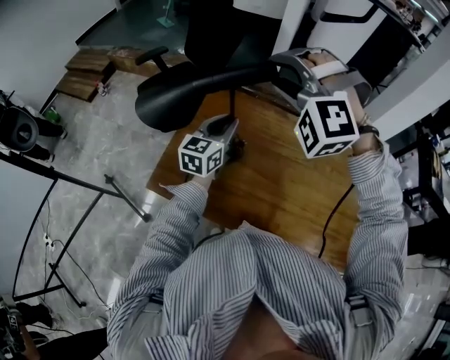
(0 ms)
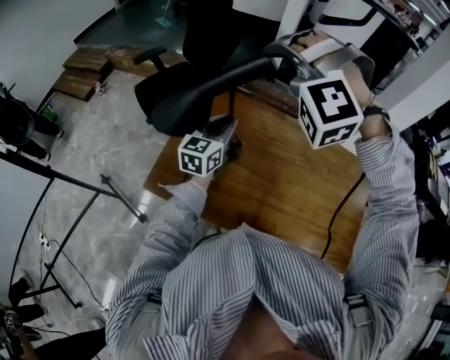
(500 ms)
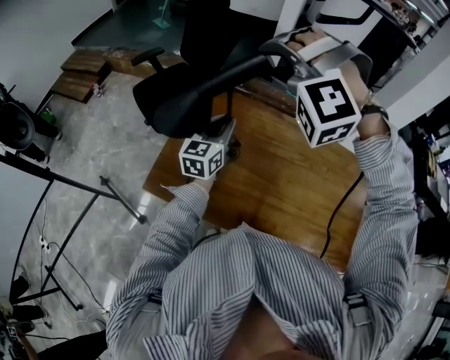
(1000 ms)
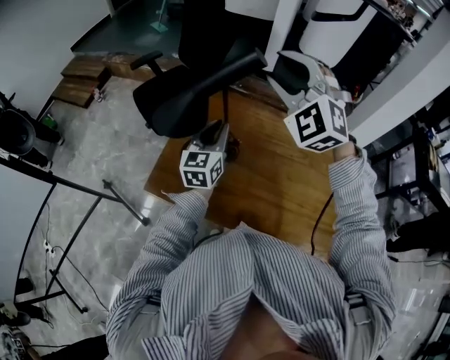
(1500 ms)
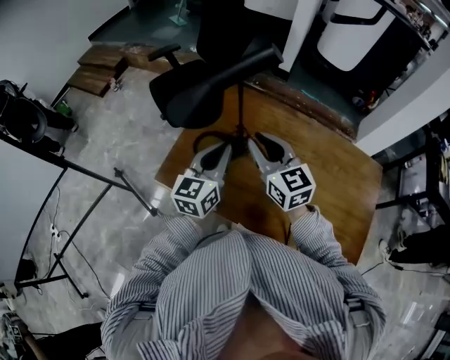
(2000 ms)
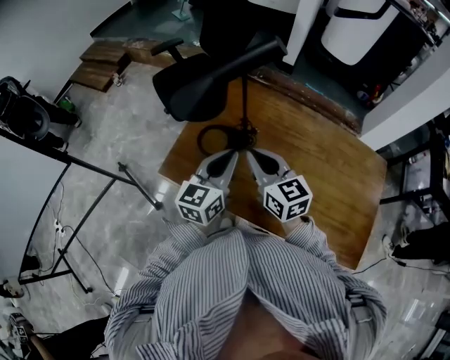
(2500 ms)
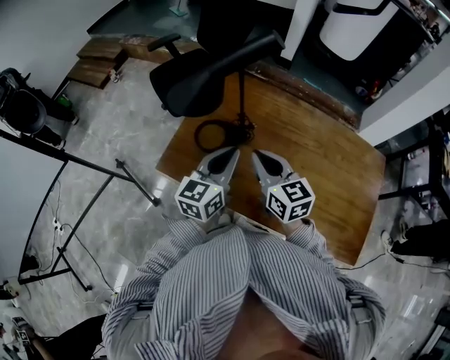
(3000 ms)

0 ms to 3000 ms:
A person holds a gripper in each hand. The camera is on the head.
0 ms to 1500 ms: The right gripper swivels approximately 40 degrees.
1500 ms to 3000 ms: The left gripper goes about 15 cm backward. Meanwhile the right gripper moves downward and backward, some 25 cm, rotates around the line of its fingers by approximately 80 degrees, clockwise from behind, and closes.

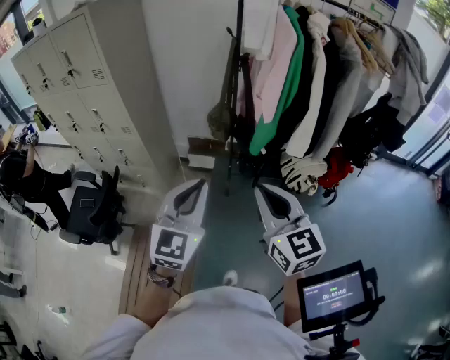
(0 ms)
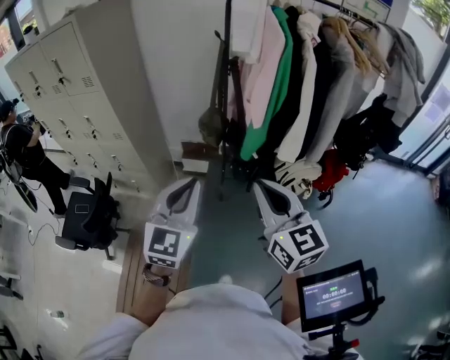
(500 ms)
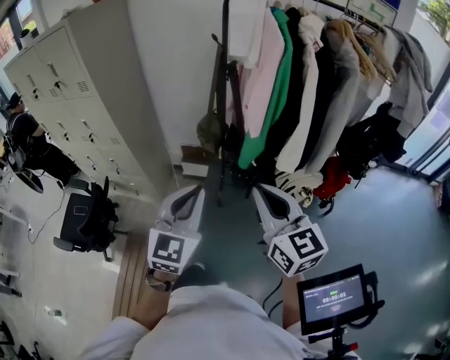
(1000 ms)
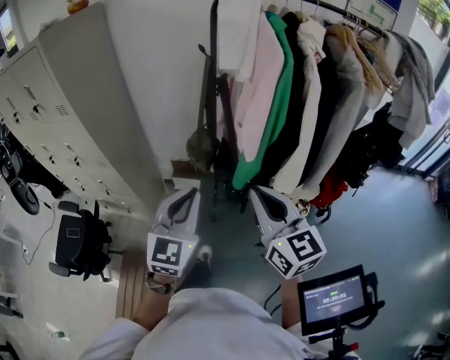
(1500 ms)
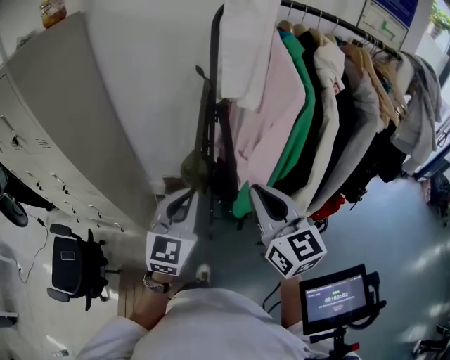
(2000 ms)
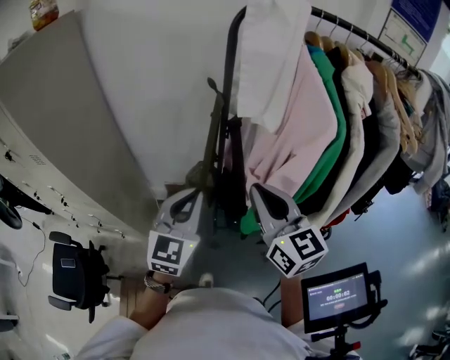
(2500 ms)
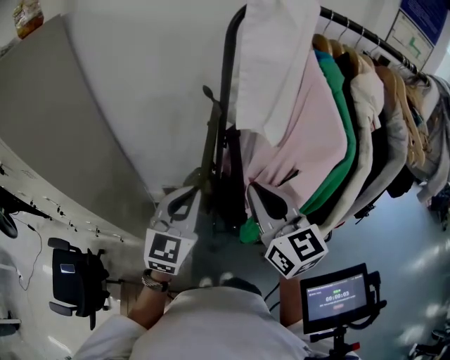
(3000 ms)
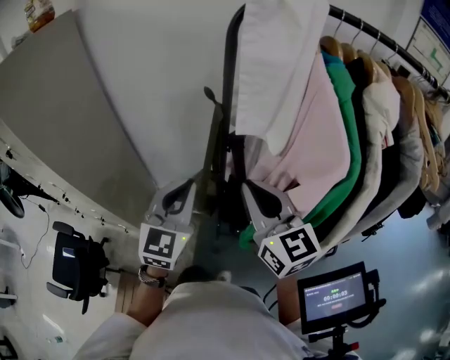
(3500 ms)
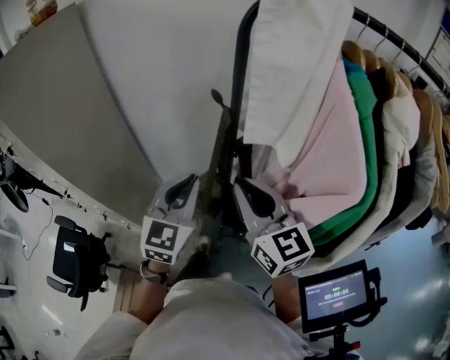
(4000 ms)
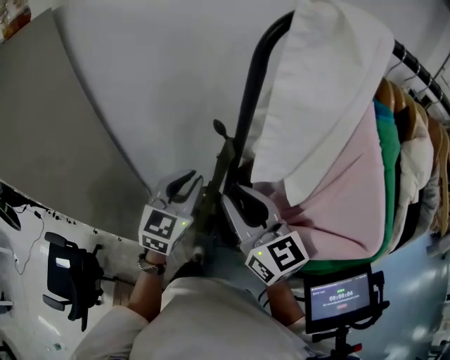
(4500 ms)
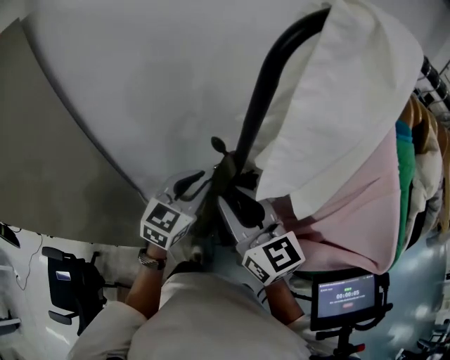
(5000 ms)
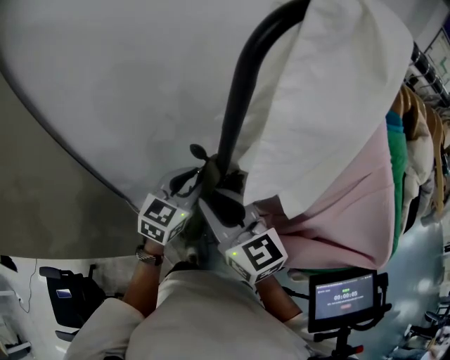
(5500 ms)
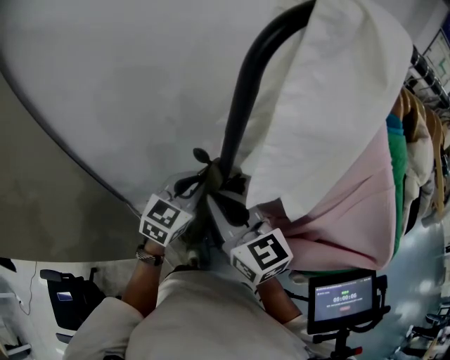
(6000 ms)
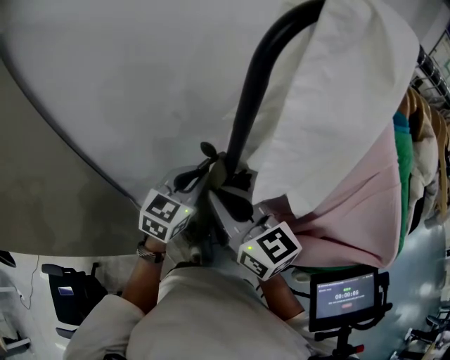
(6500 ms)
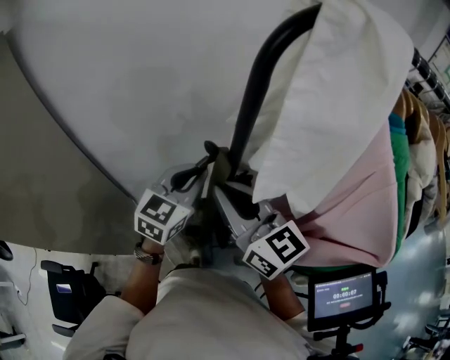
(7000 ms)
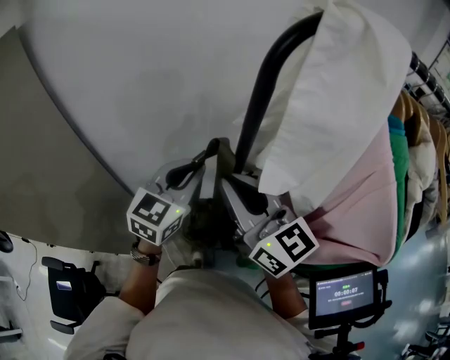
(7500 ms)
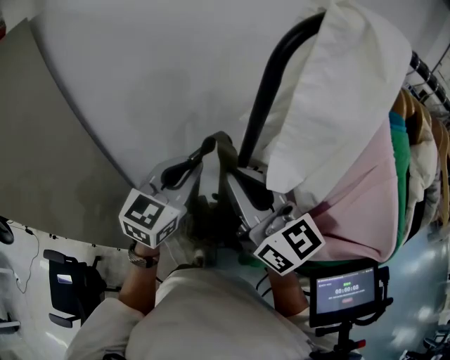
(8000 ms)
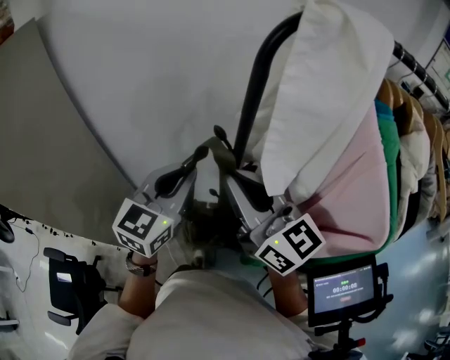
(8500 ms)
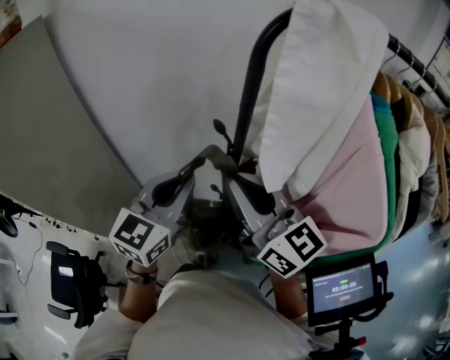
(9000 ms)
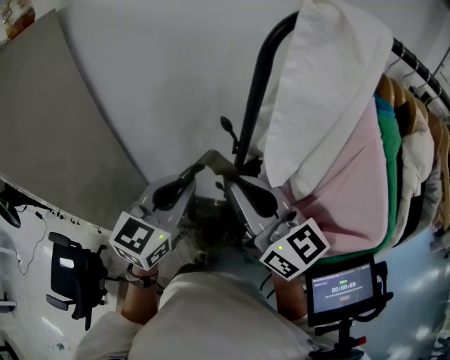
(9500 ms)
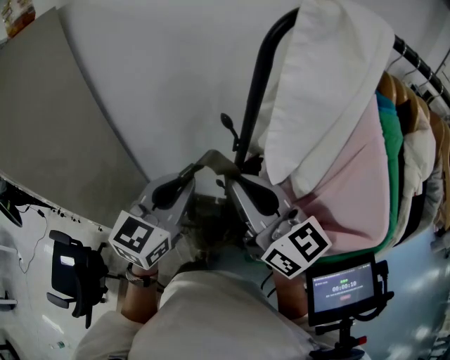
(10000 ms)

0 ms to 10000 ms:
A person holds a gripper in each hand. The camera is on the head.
0 ms to 2000 ms: The grippers both shift forward by roughly 30 cm.
2000 ms to 4000 ms: The grippers both shift forward by about 20 cm.
4000 ms to 6000 ms: The right gripper heads forward, covering some 5 cm. The left gripper moves forward, to the right and downward, approximately 15 cm, and swivels approximately 30 degrees.
6000 ms to 8000 ms: The left gripper travels upward and to the left by roughly 15 cm; the right gripper goes approximately 10 cm upward.
8000 ms to 10000 ms: The right gripper travels backward by about 5 cm. Meanwhile the left gripper is displaced backward by approximately 10 cm.

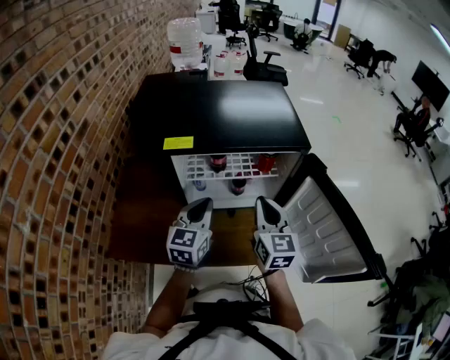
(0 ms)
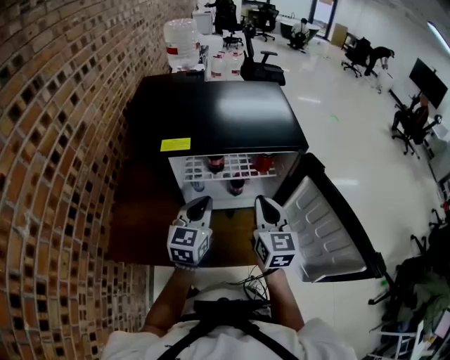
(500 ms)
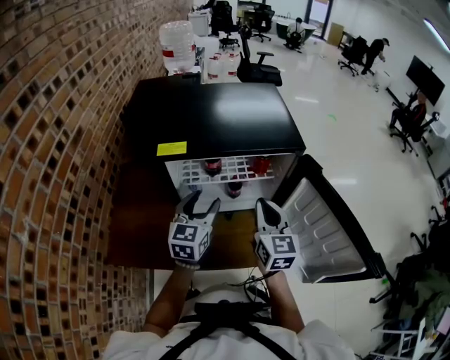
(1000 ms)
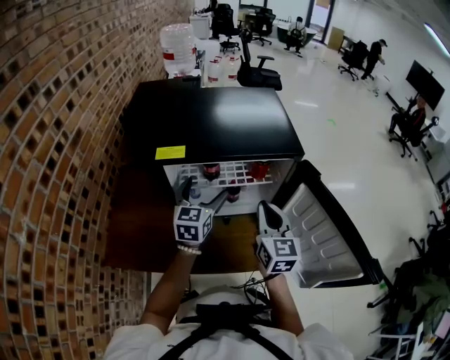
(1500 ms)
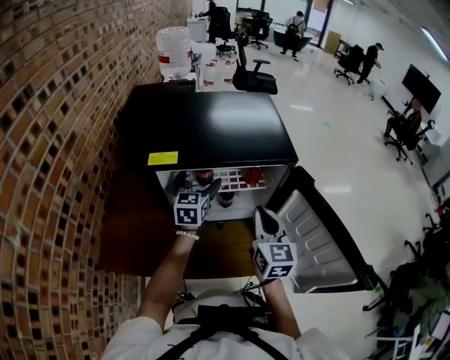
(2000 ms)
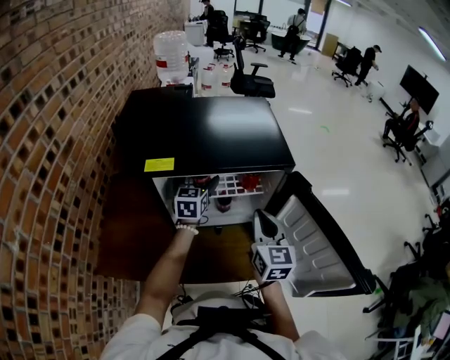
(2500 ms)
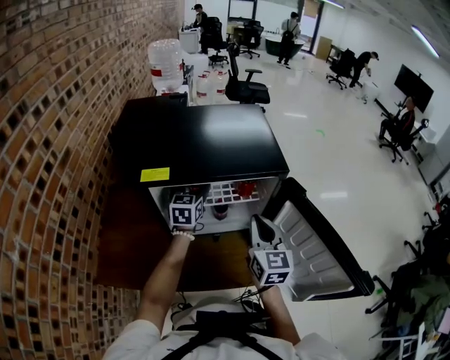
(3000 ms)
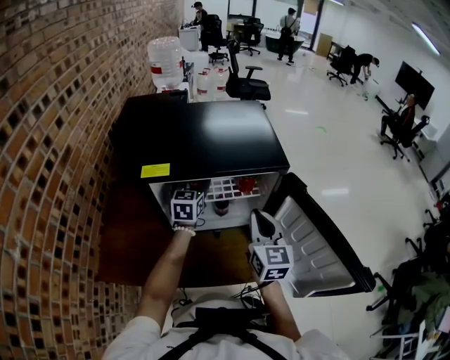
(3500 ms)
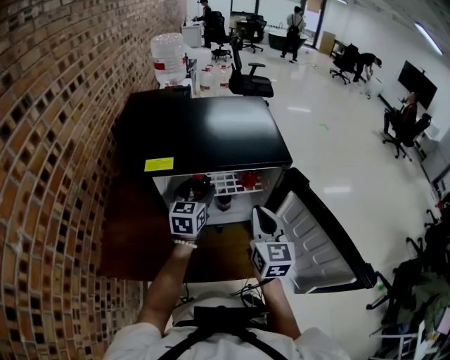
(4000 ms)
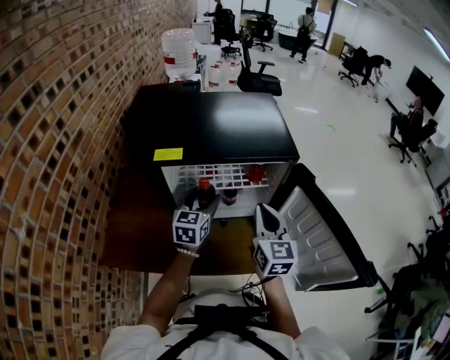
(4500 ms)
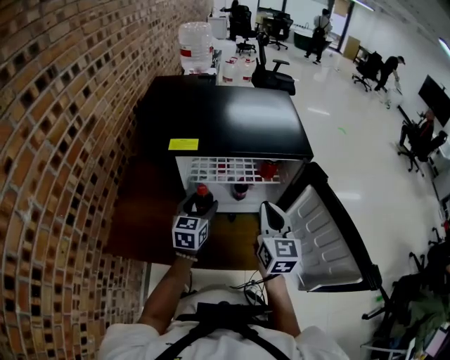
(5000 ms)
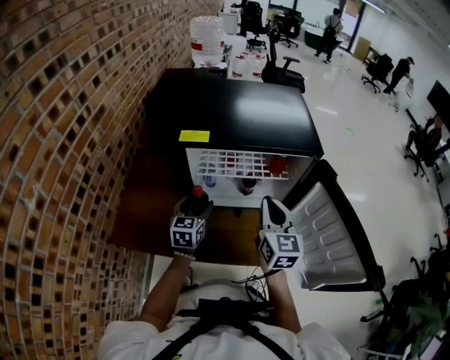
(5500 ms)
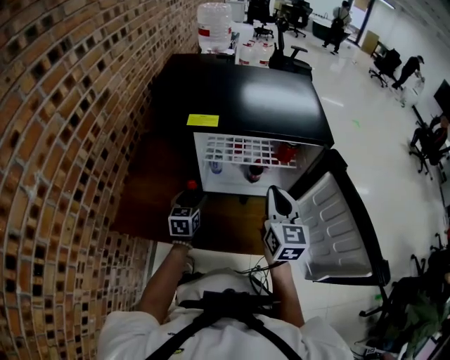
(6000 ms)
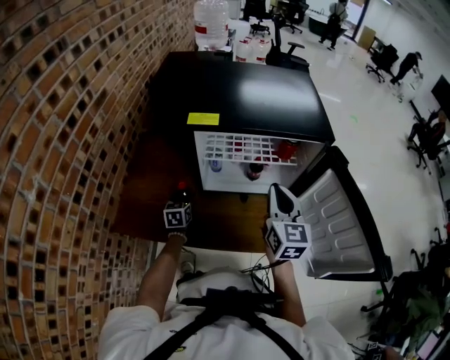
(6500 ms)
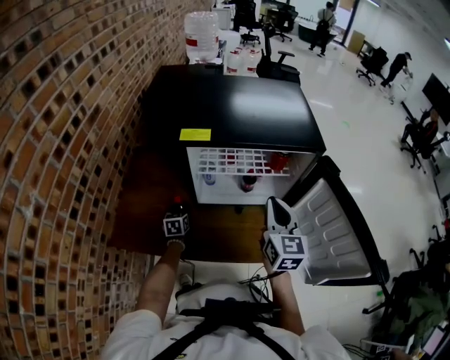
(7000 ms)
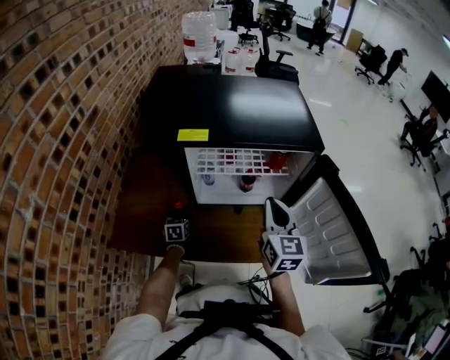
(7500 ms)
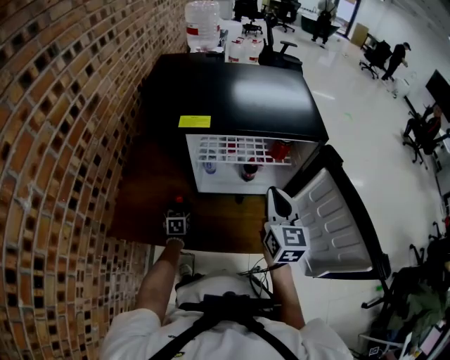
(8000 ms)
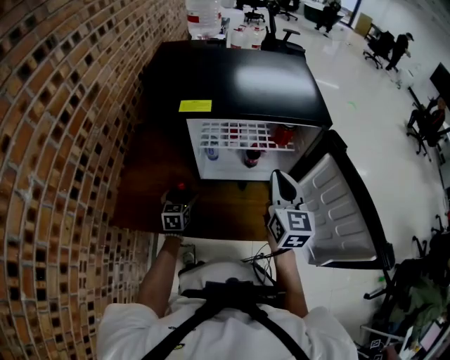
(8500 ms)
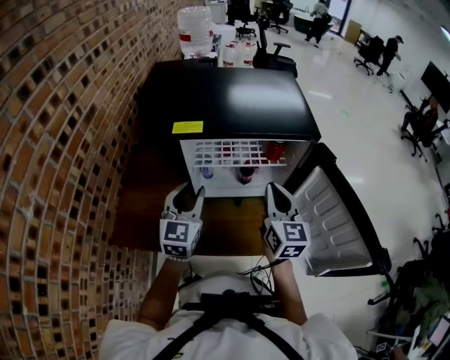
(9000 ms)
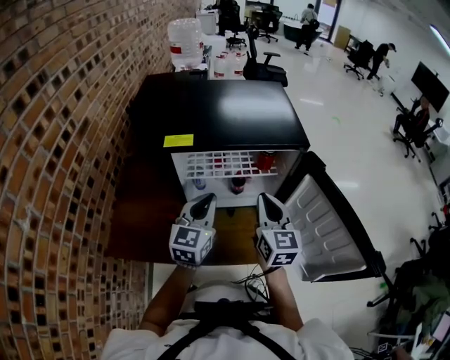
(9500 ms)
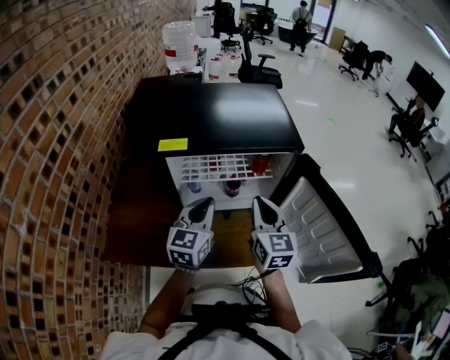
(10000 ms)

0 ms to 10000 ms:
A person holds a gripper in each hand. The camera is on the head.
0 ms to 2000 ms: The left gripper moves forward, approximately 15 cm, and opens.
2000 ms to 4000 ms: The left gripper closes its fingers.
4000 ms to 6000 ms: The left gripper heads downward, to the left and backward, covering some 25 cm, and rotates about 20 degrees; the right gripper travels to the left by about 5 cm.
6000 ms to 8000 ms: The left gripper moves downward and to the left, about 15 cm.
8000 ms to 10000 ms: The left gripper is displaced upward and to the right by about 35 cm, tilts its fingers approximately 30 degrees upward, and closes its fingers.

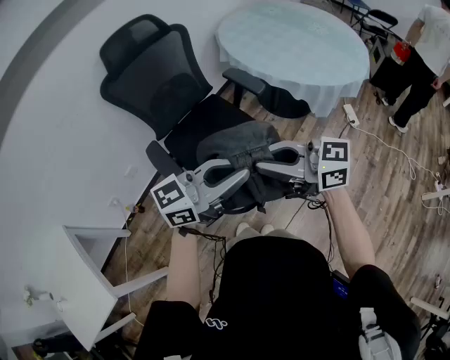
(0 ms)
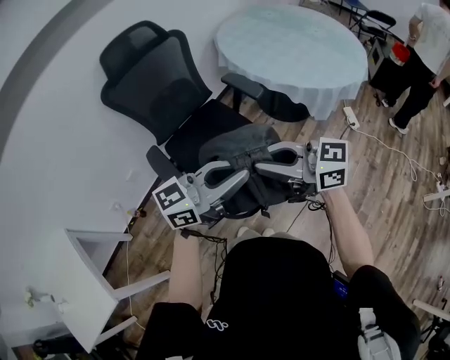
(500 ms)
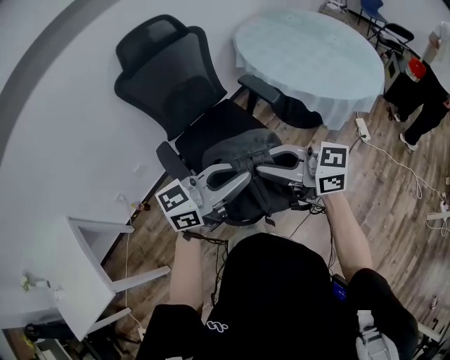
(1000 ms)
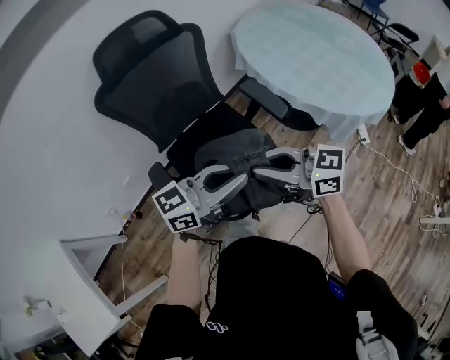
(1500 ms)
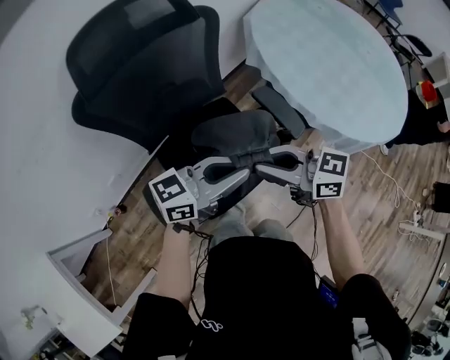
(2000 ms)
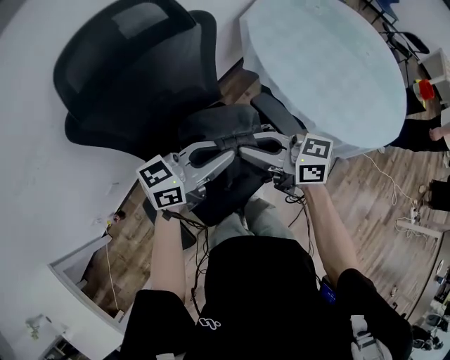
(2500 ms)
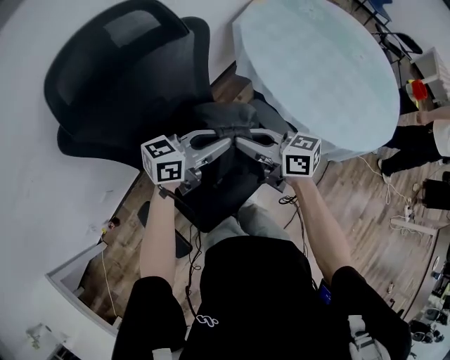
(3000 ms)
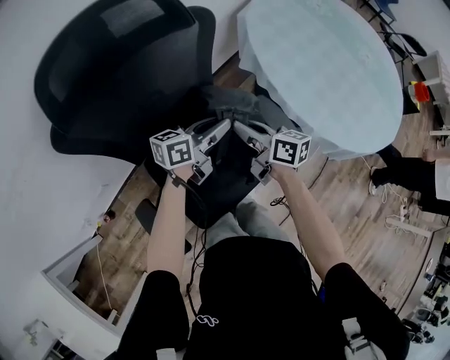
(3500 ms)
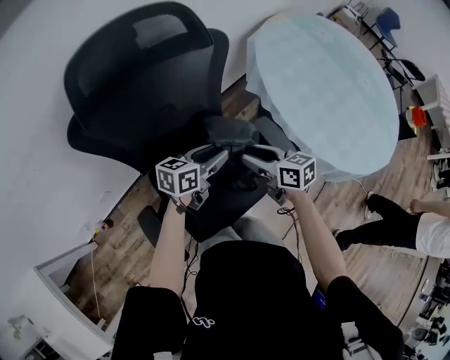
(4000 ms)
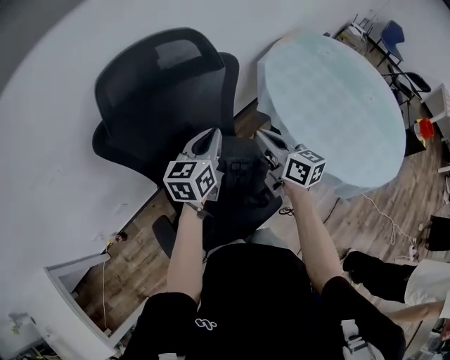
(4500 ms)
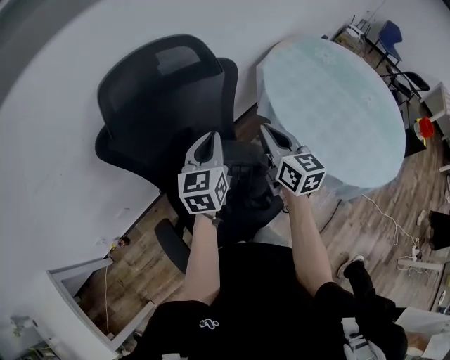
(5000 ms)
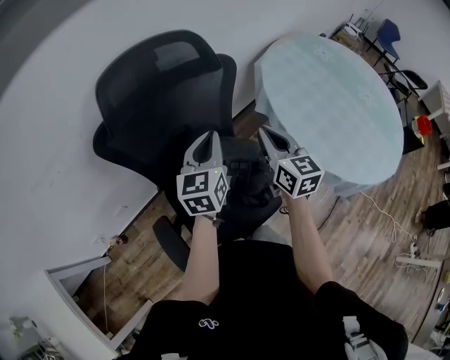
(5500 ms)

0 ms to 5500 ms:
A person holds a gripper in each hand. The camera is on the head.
0 ms to 2000 ms: The right gripper shifts by about 40 cm, while the left gripper shifts by approximately 40 cm.
2000 ms to 3500 ms: The right gripper changes place by some 25 cm, and swivels roughly 40 degrees. Meanwhile the left gripper ends up approximately 25 cm from where it was, and turns by some 20 degrees.
3500 ms to 5500 ms: The left gripper goes some 15 cm upward and to the left, swivels approximately 60 degrees, and opens, then closes again, while the right gripper is displaced upward by roughly 15 cm, turns by approximately 40 degrees, and opens, then closes again.
